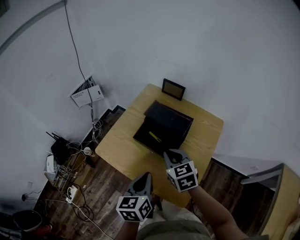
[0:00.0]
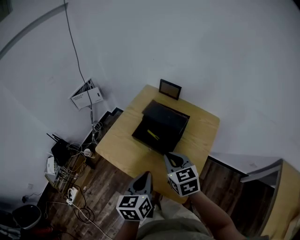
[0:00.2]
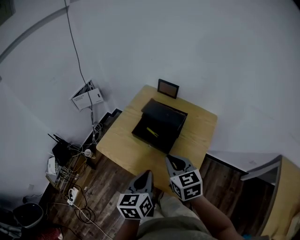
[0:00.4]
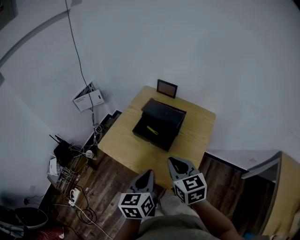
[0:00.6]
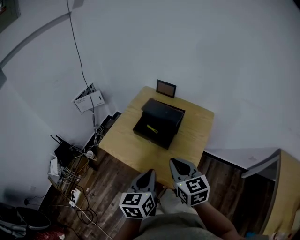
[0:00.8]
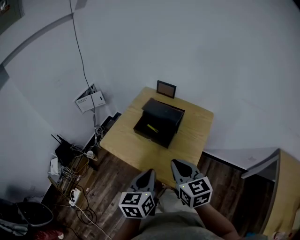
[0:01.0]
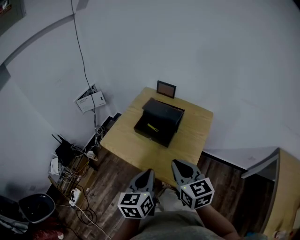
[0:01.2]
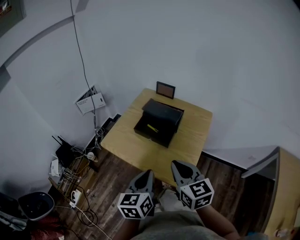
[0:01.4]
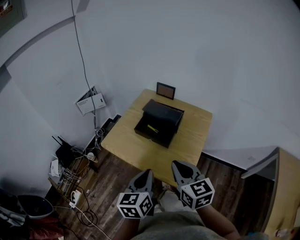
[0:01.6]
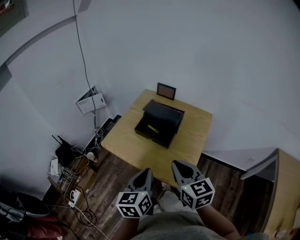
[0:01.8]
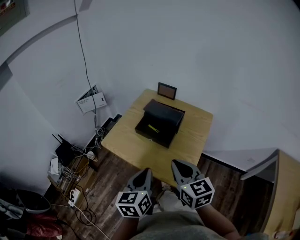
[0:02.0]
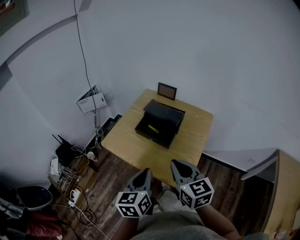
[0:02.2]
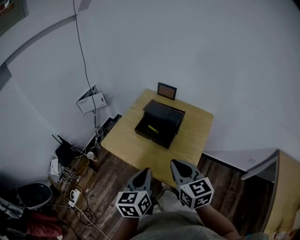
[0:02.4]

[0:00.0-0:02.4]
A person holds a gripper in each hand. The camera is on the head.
0:00.0 to 0:01.2: The right gripper goes some 20 cm backward and upward, and rotates roughly 20 degrees; the left gripper shifts some 10 cm backward.
0:01.2 to 0:02.4: There are only small adjustments of the grippers.

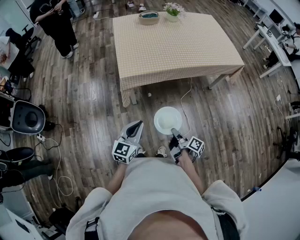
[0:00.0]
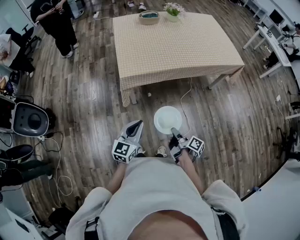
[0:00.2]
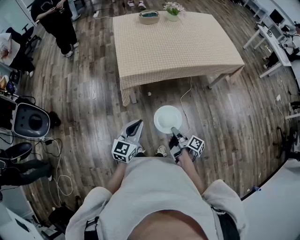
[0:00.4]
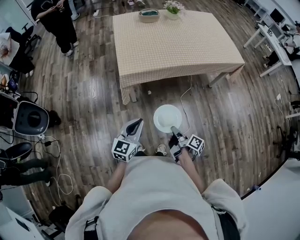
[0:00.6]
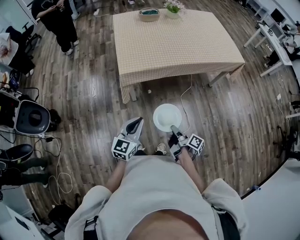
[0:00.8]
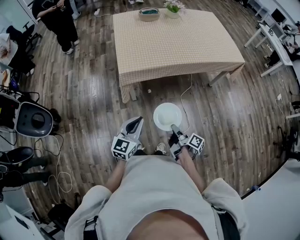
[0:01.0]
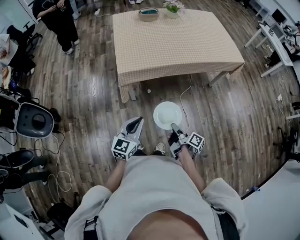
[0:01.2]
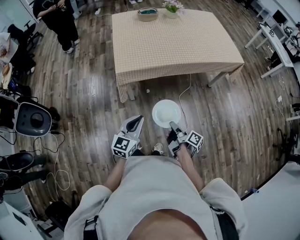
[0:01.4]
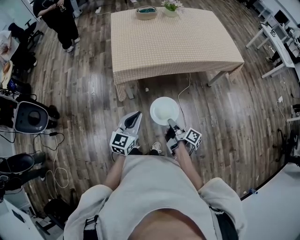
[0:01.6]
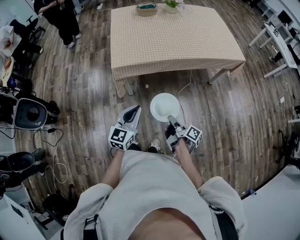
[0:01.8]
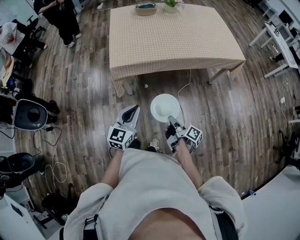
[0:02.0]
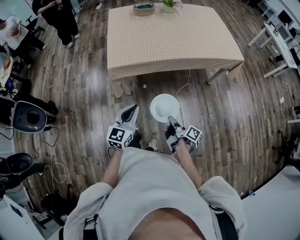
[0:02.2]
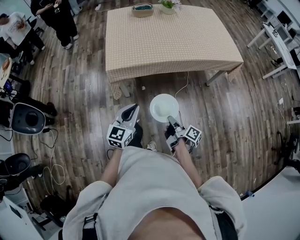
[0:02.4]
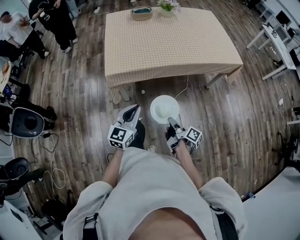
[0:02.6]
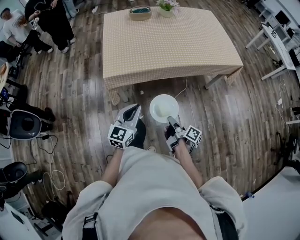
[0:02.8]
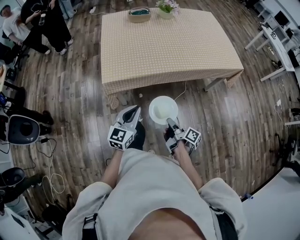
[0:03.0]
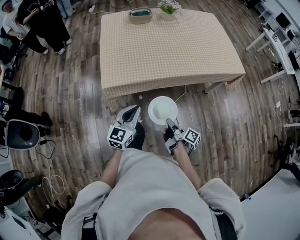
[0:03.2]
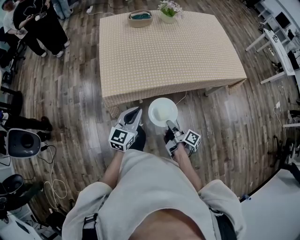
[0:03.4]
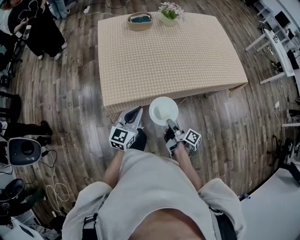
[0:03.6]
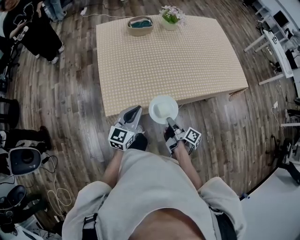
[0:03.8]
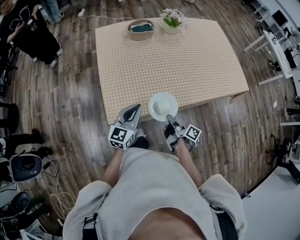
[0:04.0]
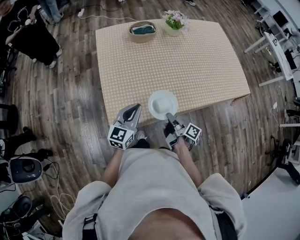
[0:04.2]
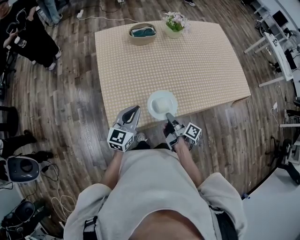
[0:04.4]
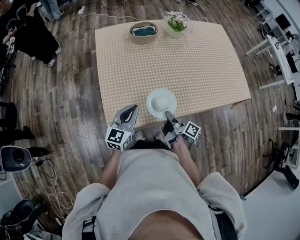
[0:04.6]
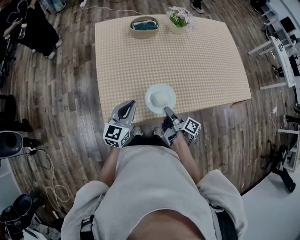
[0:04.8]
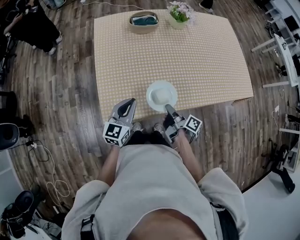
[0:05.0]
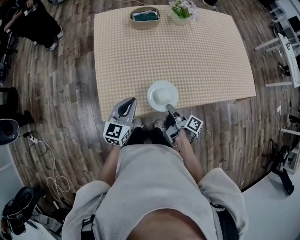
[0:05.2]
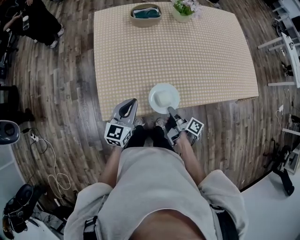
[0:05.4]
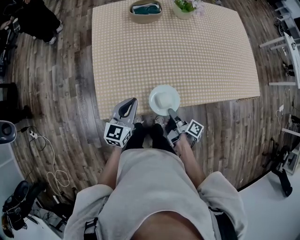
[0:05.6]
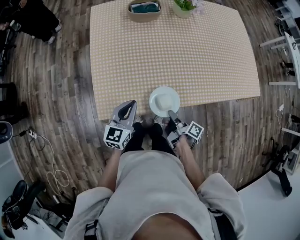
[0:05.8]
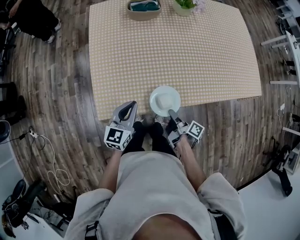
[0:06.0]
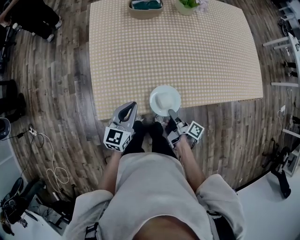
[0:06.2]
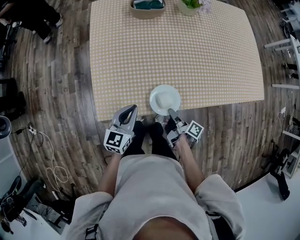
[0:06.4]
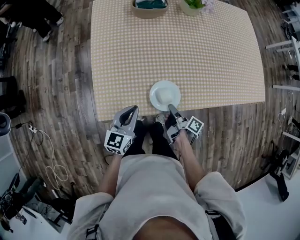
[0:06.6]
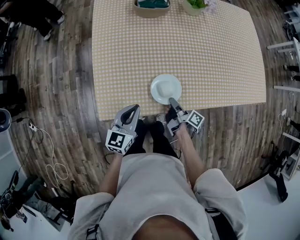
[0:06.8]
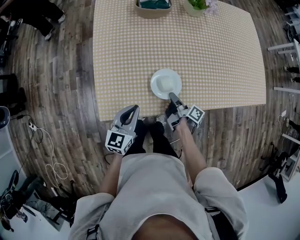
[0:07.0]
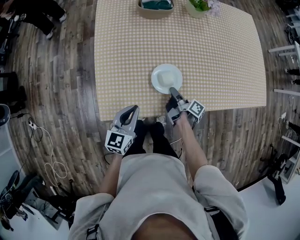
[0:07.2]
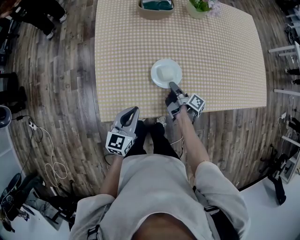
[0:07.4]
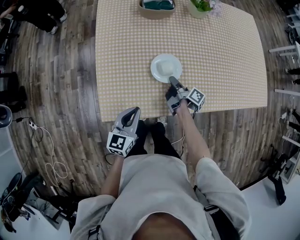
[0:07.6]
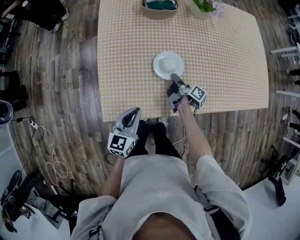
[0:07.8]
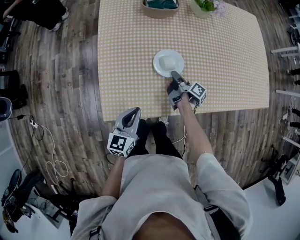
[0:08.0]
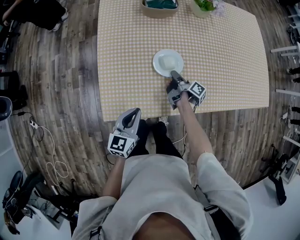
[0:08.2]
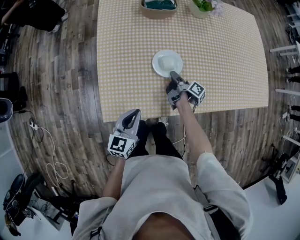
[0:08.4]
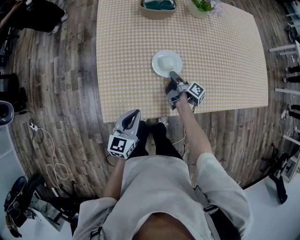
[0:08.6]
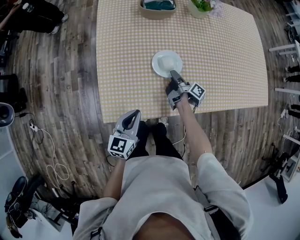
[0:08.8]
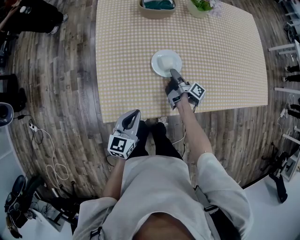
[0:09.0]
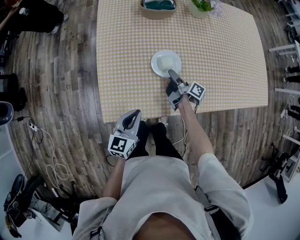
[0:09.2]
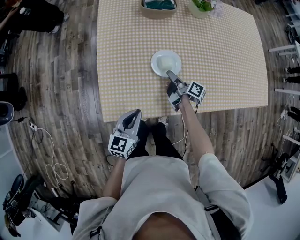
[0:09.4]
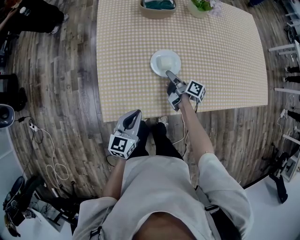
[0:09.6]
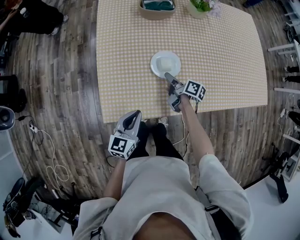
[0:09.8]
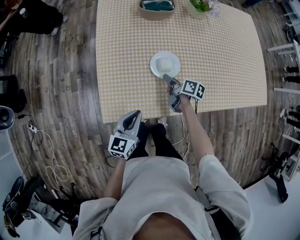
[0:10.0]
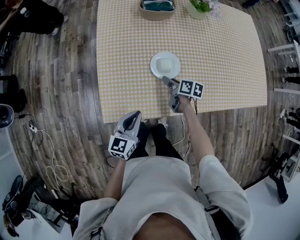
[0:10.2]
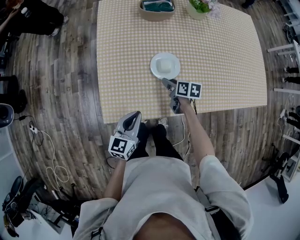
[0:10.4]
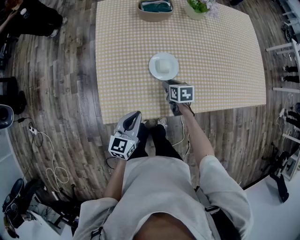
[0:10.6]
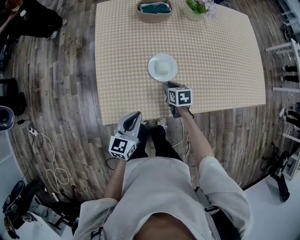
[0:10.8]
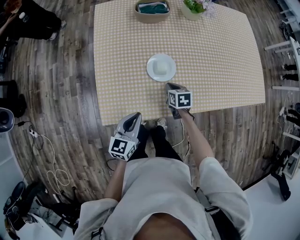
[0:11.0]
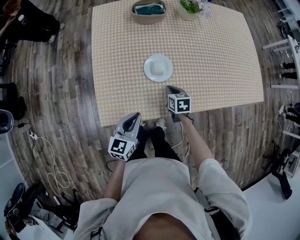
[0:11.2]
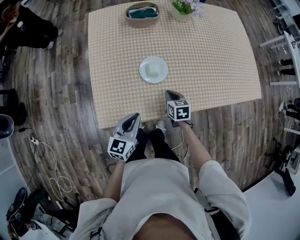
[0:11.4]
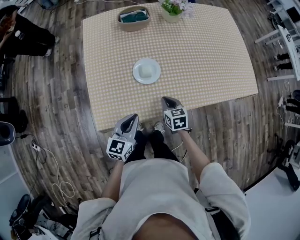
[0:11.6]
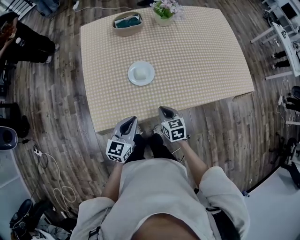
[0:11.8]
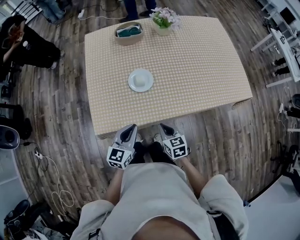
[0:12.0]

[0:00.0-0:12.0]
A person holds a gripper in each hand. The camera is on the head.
0:00.0 to 0:01.6: The left gripper shifts by some 5 cm.
0:01.6 to 0:03.0: The left gripper ends up about 15 cm from where it was.
0:03.0 to 0:04.4: The left gripper shifts by roughly 35 cm.
0:04.4 to 0:06.0: The left gripper is displaced downward by about 5 cm.
0:10.4 to 0:12.0: The left gripper shifts by roughly 10 cm.

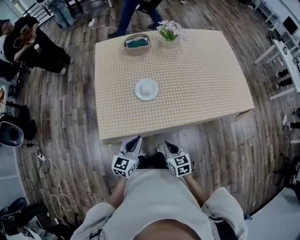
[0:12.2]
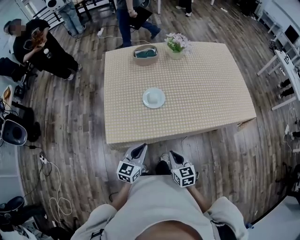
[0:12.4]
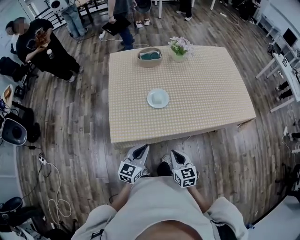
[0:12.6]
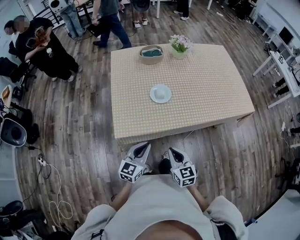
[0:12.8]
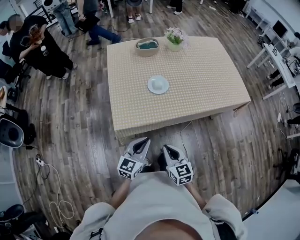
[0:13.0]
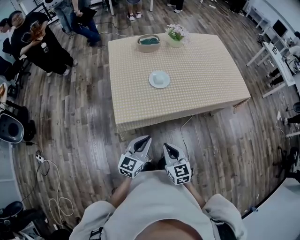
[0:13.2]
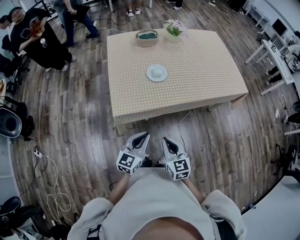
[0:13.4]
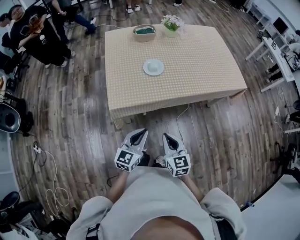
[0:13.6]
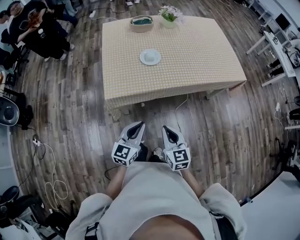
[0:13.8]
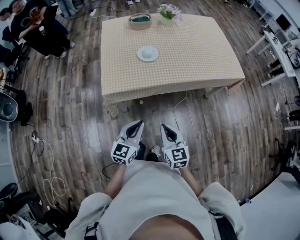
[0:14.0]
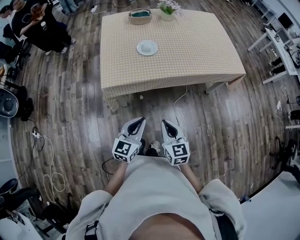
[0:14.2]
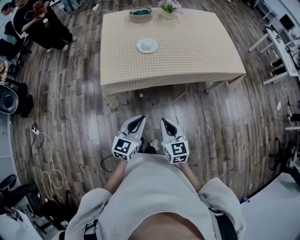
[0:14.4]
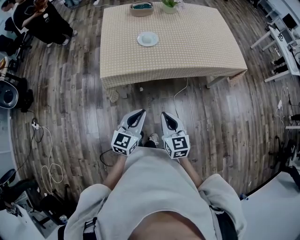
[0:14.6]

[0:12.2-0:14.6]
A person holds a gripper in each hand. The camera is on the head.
0:12.2 to 0:13.4: The left gripper ends up approximately 20 cm from where it was.
0:13.4 to 0:14.6: The left gripper moves approximately 15 cm.

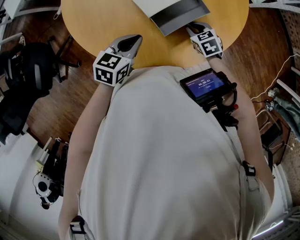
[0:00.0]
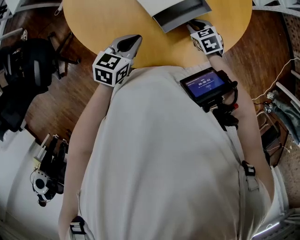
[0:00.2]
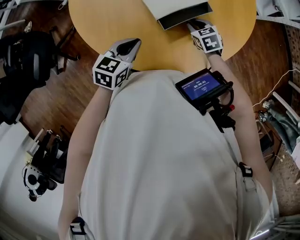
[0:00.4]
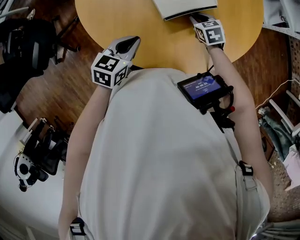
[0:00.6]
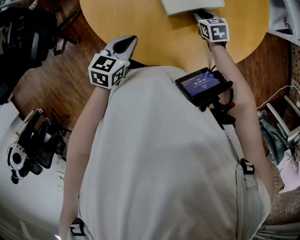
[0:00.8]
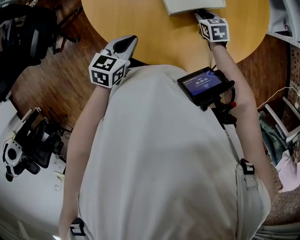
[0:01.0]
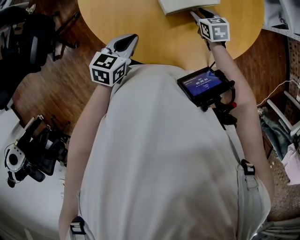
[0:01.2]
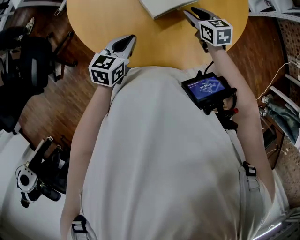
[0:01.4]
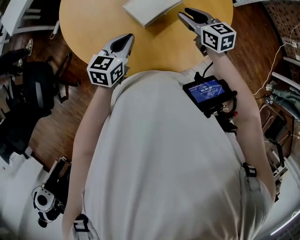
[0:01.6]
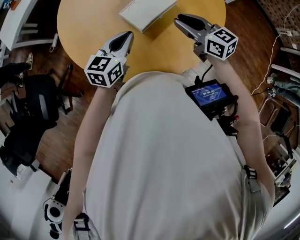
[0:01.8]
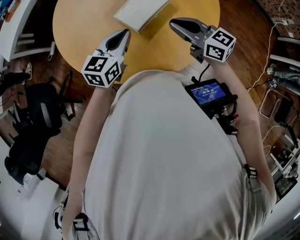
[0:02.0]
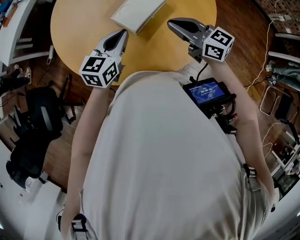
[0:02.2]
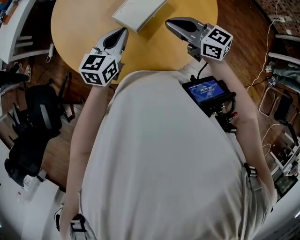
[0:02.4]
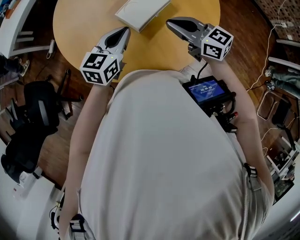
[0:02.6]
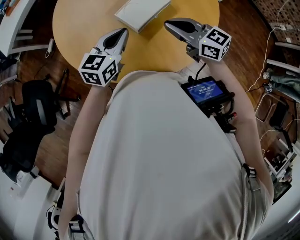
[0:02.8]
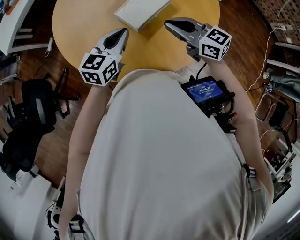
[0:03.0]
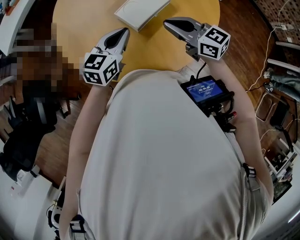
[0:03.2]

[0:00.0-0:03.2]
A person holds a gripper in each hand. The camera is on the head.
0:00.0 to 0:01.6: The right gripper heads upward, covering approximately 20 cm, and points its fingers about 30 degrees further upward. The left gripper shifts some 5 cm upward.
0:01.6 to 0:03.2: The left gripper is displaced upward by about 5 cm; the right gripper goes about 10 cm upward and backward, turns by about 20 degrees, and closes up.

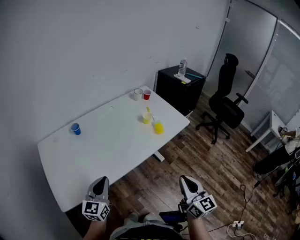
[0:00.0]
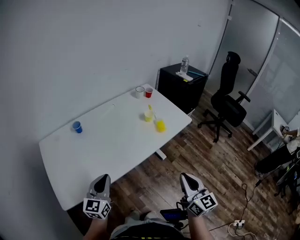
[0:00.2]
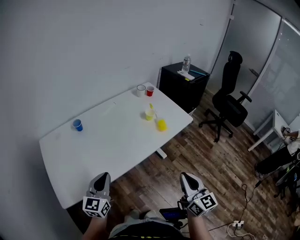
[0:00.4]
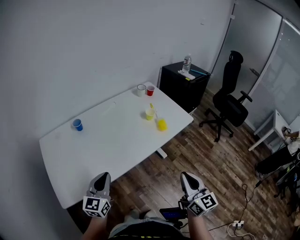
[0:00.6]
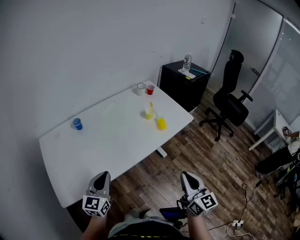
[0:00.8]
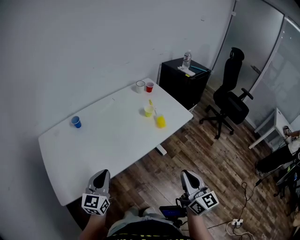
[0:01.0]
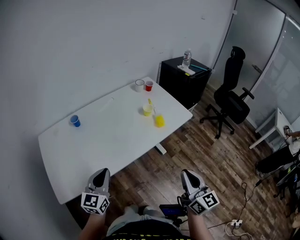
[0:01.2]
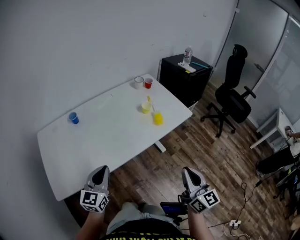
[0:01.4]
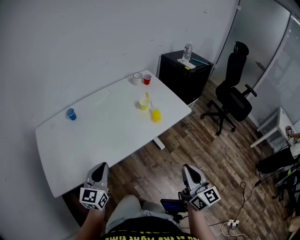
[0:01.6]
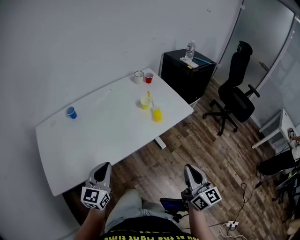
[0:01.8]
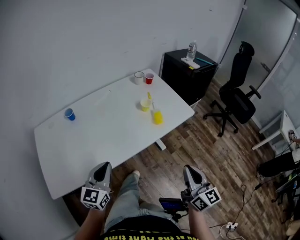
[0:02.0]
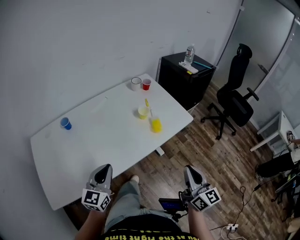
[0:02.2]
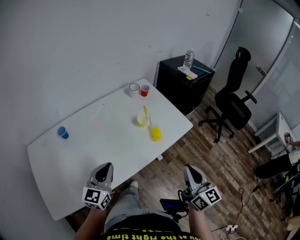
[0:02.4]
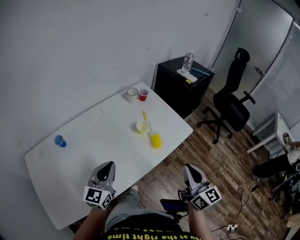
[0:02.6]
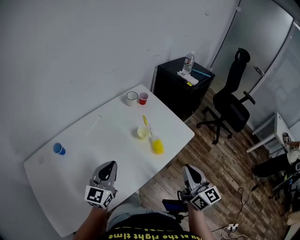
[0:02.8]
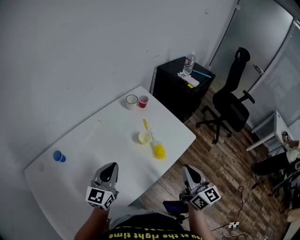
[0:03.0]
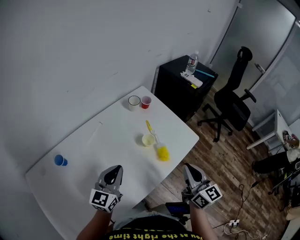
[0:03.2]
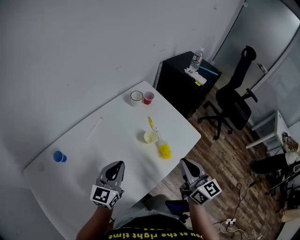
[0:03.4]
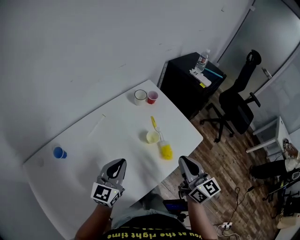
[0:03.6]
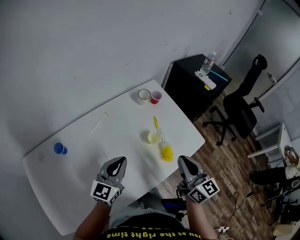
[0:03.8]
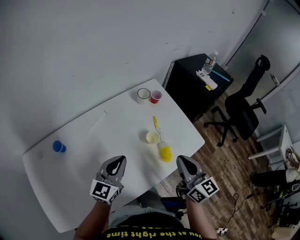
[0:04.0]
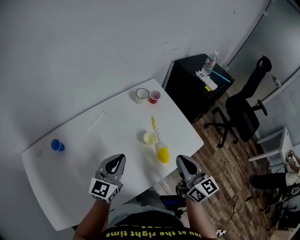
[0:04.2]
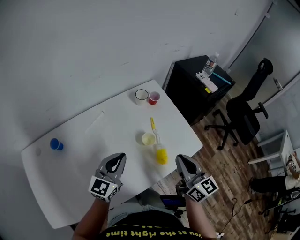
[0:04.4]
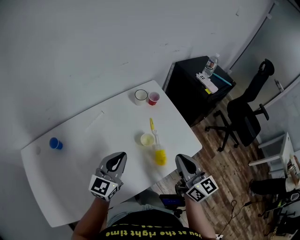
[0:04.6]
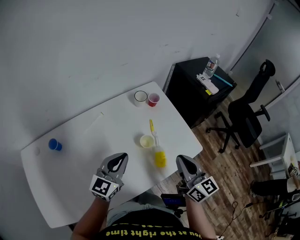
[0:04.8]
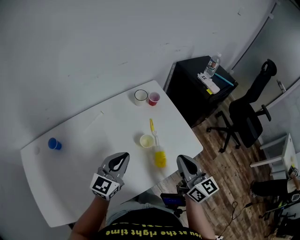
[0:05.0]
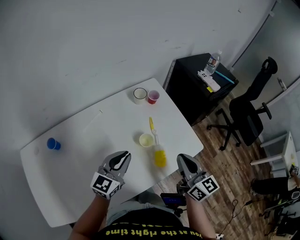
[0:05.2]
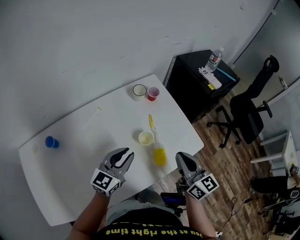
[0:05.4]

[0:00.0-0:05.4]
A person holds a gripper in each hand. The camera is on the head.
0:00.0 to 0:01.4: The two grippers go approximately 5 cm to the right.
0:01.4 to 0:02.8: The grippers both shift forward by some 25 cm.
0:02.8 to 0:04.0: The right gripper shifts about 15 cm forward and to the left, while the left gripper heads forward, covering some 10 cm.
0:04.0 to 0:05.4: The left gripper is displaced to the right by approximately 10 cm. Meanwhile the right gripper changes place by roughly 5 cm.
